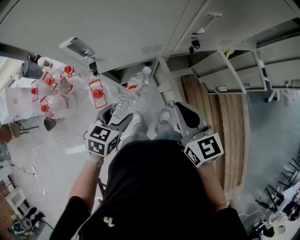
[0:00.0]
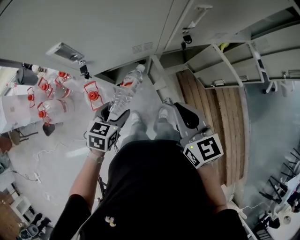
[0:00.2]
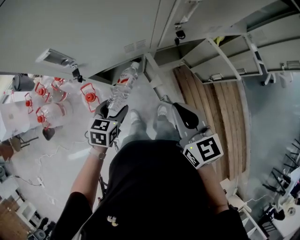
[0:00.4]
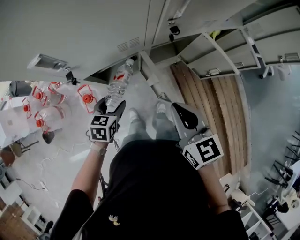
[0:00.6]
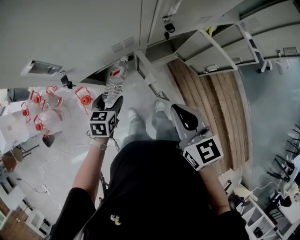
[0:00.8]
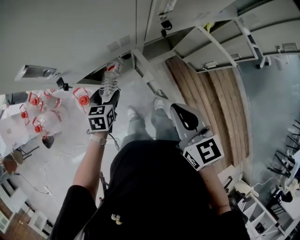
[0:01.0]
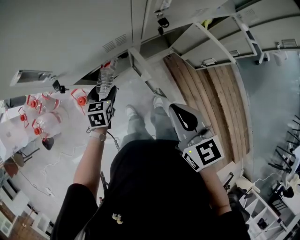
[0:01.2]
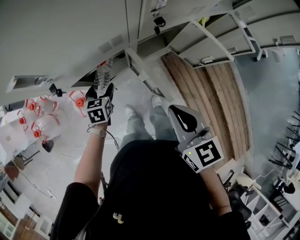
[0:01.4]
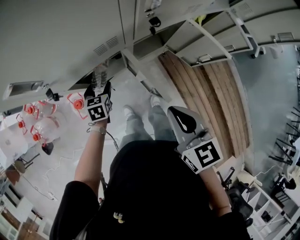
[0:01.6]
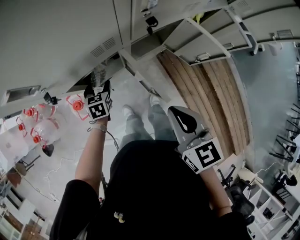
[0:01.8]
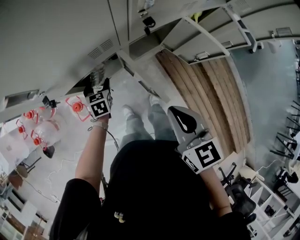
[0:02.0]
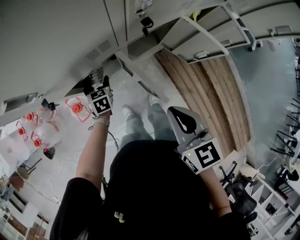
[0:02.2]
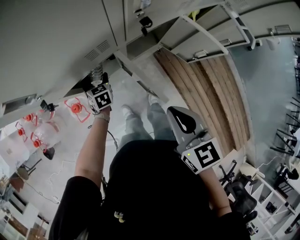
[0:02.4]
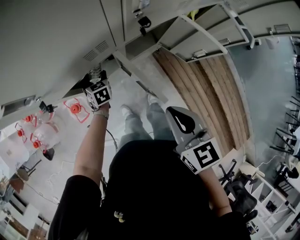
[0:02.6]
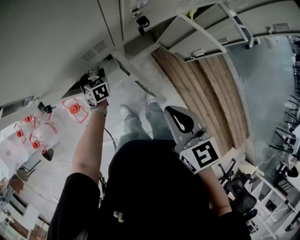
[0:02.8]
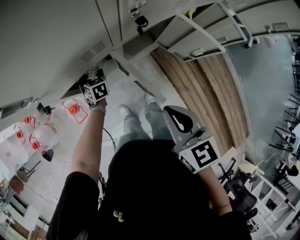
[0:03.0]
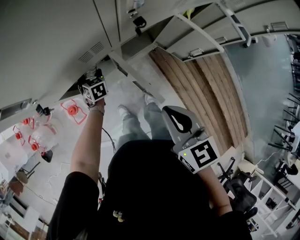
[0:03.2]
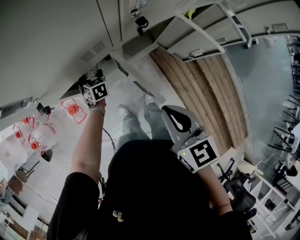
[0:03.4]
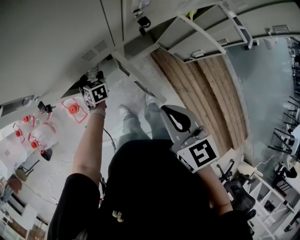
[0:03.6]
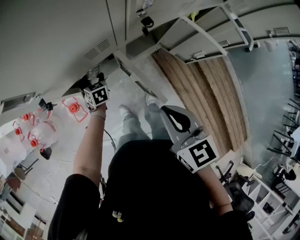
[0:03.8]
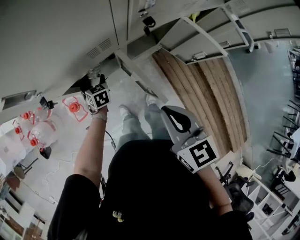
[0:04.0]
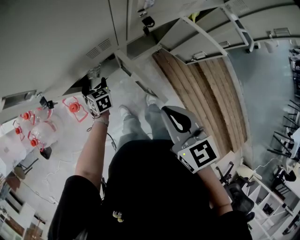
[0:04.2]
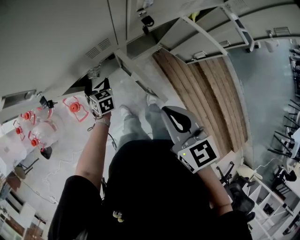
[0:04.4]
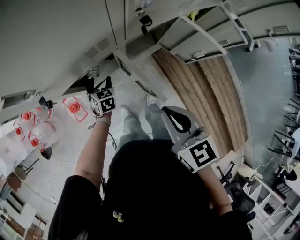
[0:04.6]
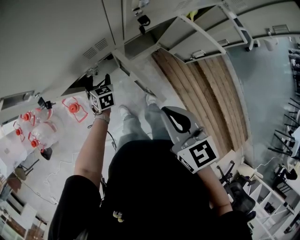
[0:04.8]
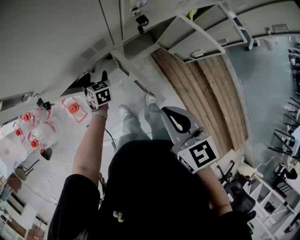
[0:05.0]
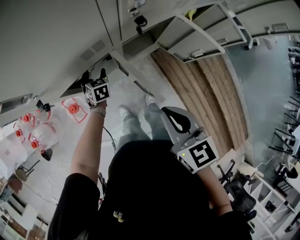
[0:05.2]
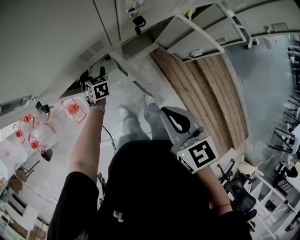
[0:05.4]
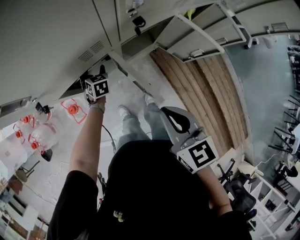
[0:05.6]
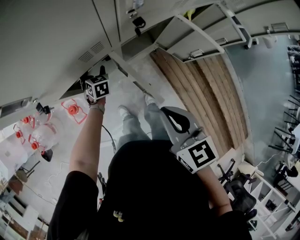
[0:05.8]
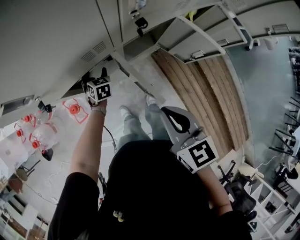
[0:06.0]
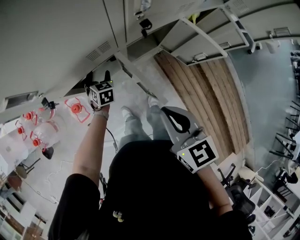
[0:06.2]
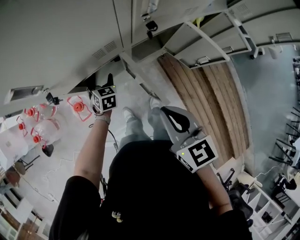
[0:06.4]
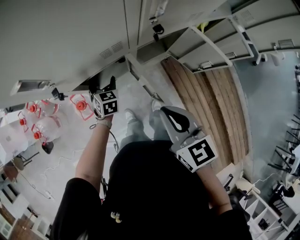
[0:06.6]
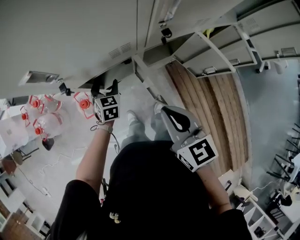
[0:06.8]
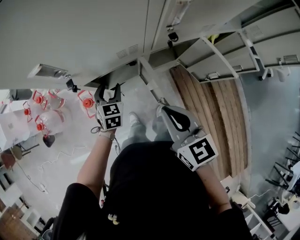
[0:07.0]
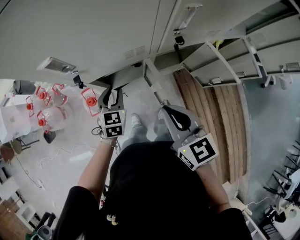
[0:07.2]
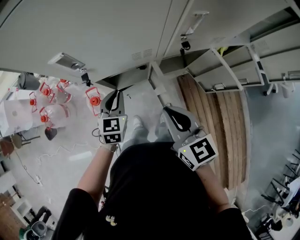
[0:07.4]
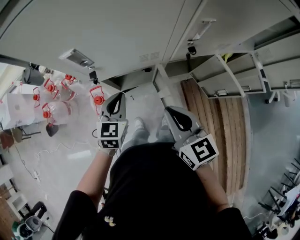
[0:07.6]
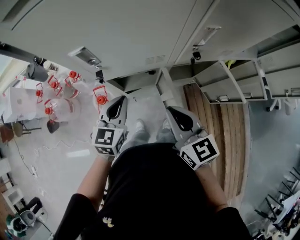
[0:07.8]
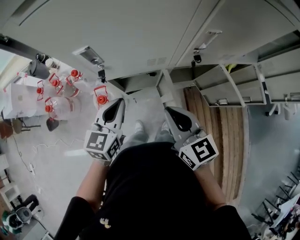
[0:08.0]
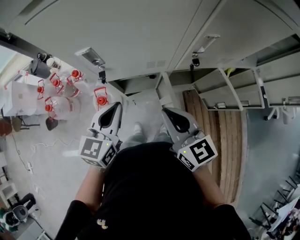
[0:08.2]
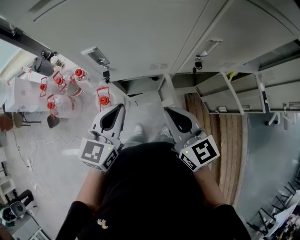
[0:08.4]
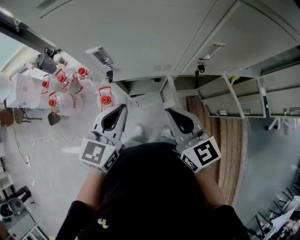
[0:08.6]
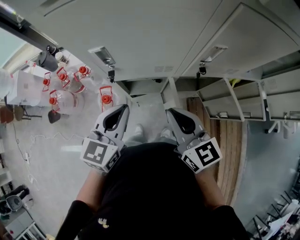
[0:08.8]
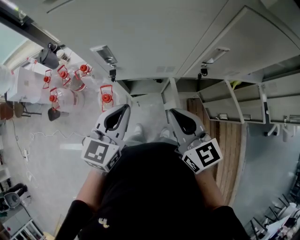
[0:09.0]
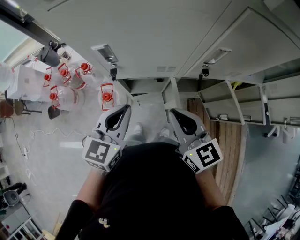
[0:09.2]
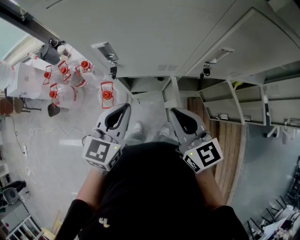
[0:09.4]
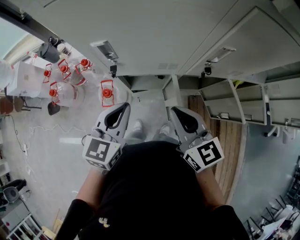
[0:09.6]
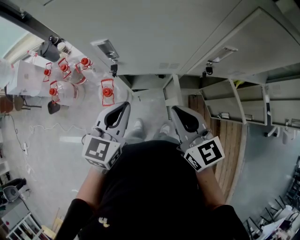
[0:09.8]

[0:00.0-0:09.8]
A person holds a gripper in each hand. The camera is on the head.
0:00.0 to 0:01.4: The left gripper travels downward and forward by roughly 20 cm. The right gripper changes place by about 5 cm.
0:01.4 to 0:02.8: The left gripper travels forward and downward by approximately 10 cm.
0:02.8 to 0:04.2: There are only small adjustments of the grippers.
0:04.2 to 0:05.6: The left gripper moves forward, about 5 cm.
0:05.6 to 0:07.0: The left gripper travels upward and backward by some 15 cm; the right gripper moves about 5 cm.
0:07.0 to 0:08.4: The right gripper is displaced upward by about 5 cm, while the left gripper moves upward, some 25 cm, turns by some 30 degrees, and closes.
0:08.4 to 0:09.8: There are only small adjustments of the grippers.

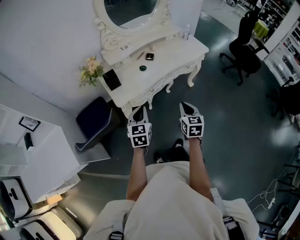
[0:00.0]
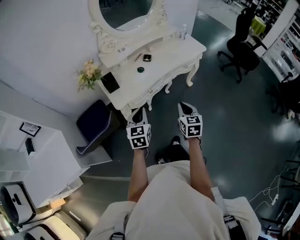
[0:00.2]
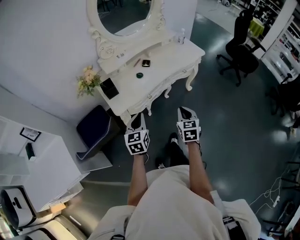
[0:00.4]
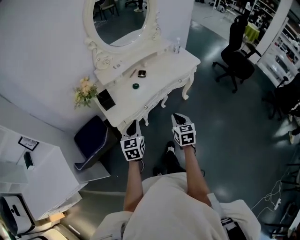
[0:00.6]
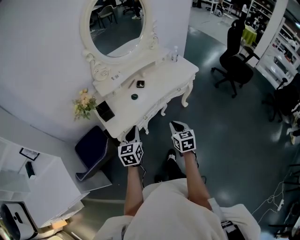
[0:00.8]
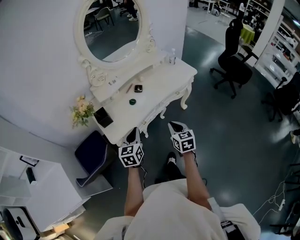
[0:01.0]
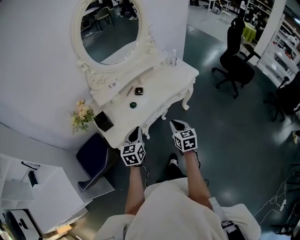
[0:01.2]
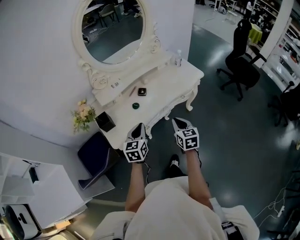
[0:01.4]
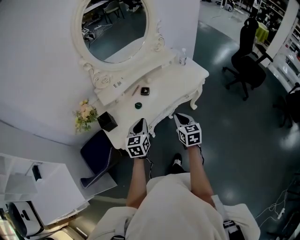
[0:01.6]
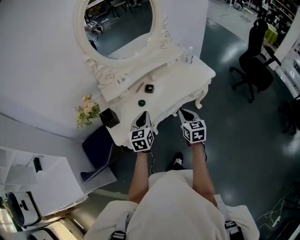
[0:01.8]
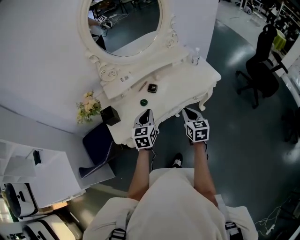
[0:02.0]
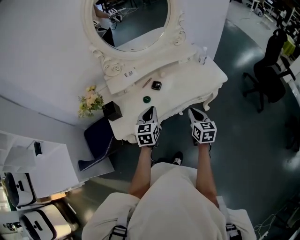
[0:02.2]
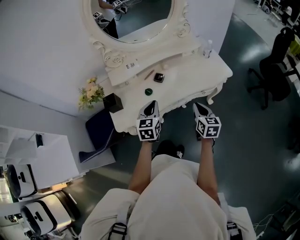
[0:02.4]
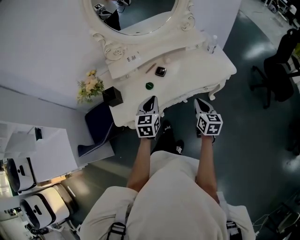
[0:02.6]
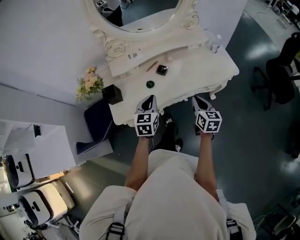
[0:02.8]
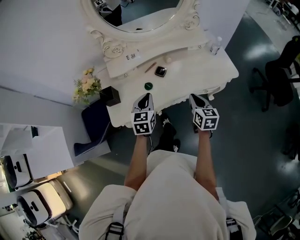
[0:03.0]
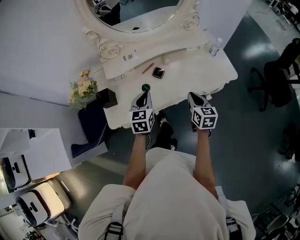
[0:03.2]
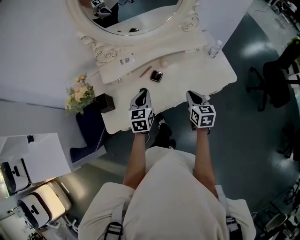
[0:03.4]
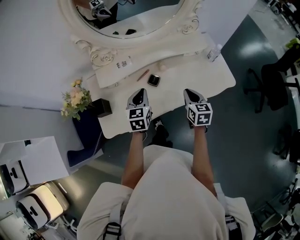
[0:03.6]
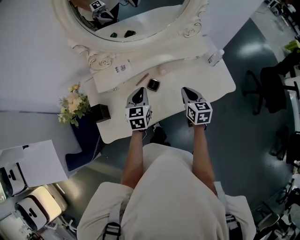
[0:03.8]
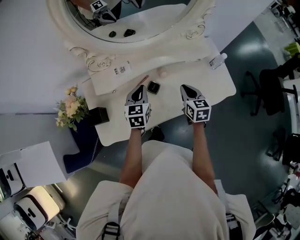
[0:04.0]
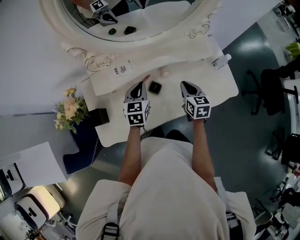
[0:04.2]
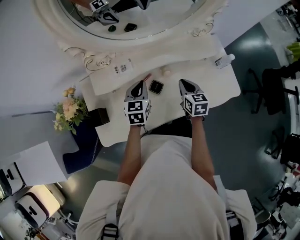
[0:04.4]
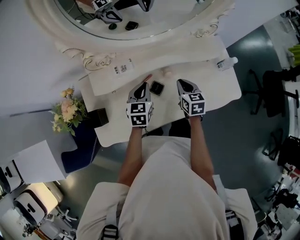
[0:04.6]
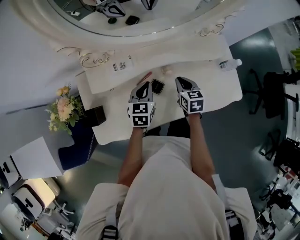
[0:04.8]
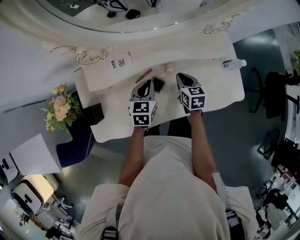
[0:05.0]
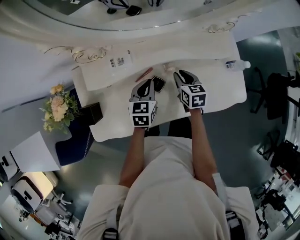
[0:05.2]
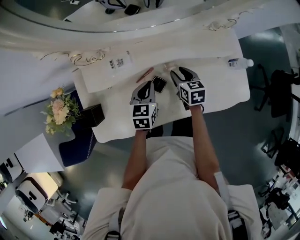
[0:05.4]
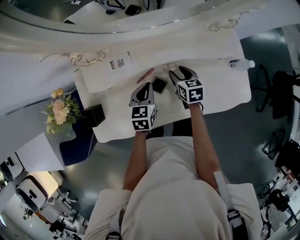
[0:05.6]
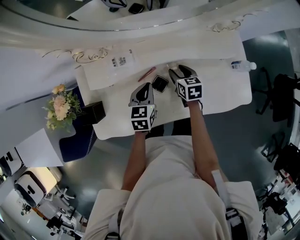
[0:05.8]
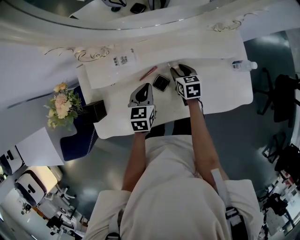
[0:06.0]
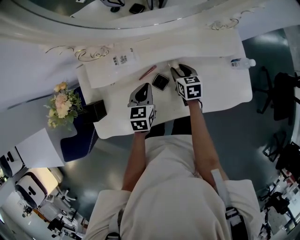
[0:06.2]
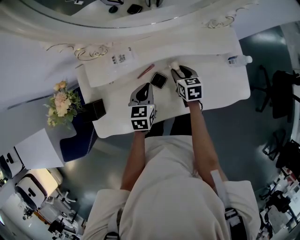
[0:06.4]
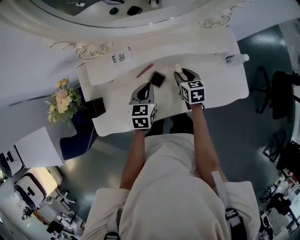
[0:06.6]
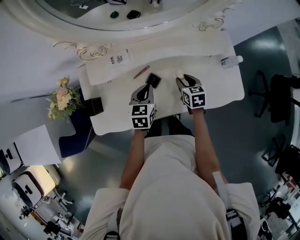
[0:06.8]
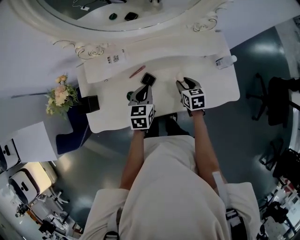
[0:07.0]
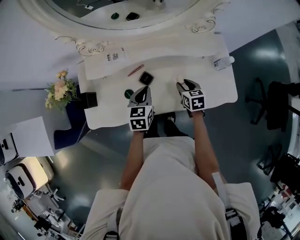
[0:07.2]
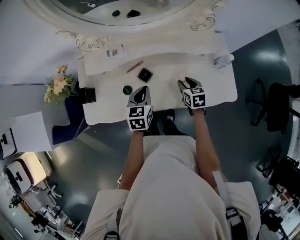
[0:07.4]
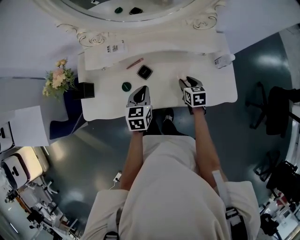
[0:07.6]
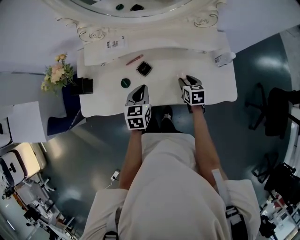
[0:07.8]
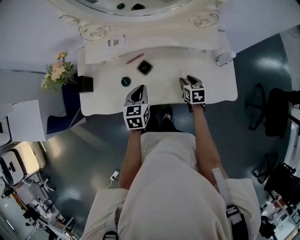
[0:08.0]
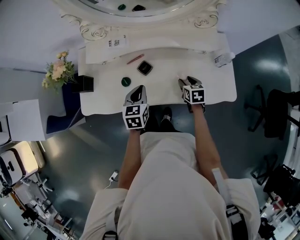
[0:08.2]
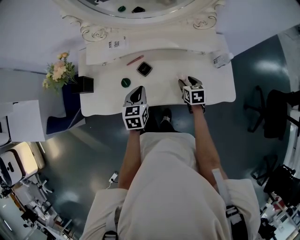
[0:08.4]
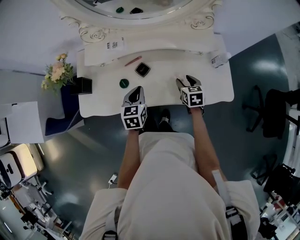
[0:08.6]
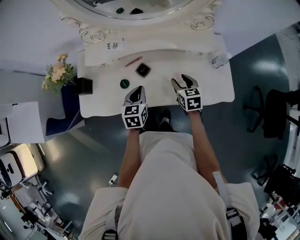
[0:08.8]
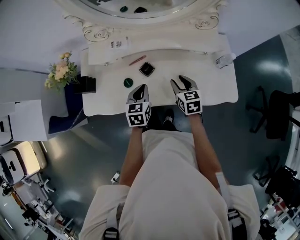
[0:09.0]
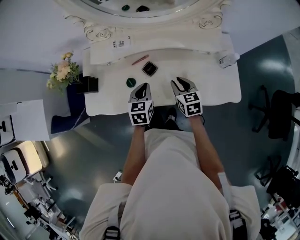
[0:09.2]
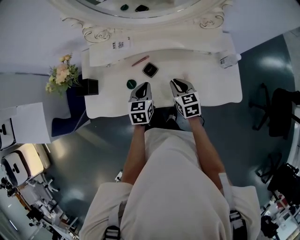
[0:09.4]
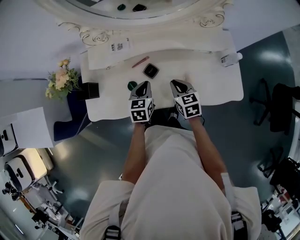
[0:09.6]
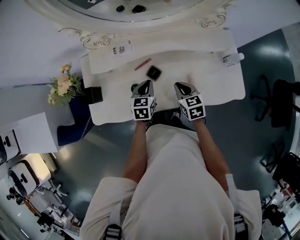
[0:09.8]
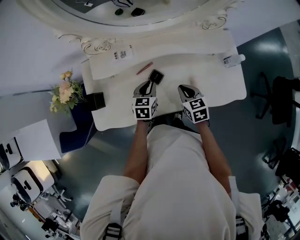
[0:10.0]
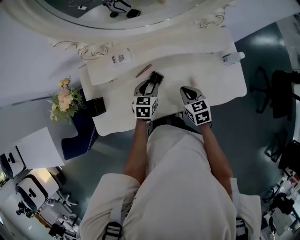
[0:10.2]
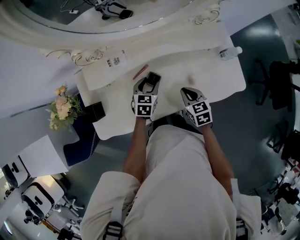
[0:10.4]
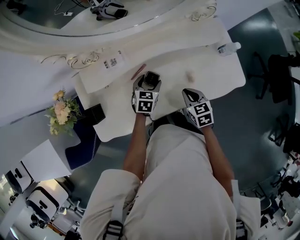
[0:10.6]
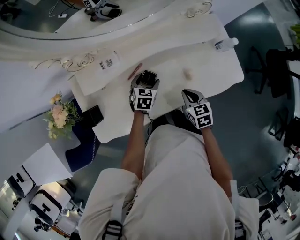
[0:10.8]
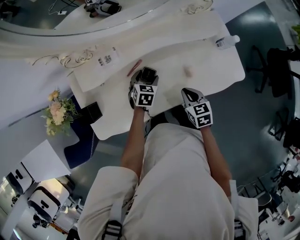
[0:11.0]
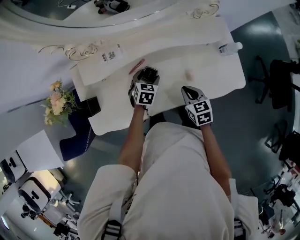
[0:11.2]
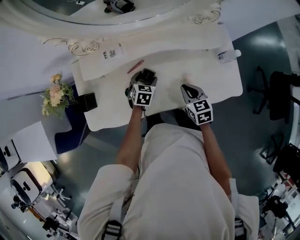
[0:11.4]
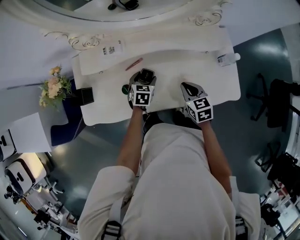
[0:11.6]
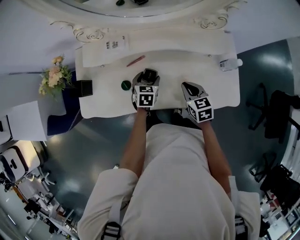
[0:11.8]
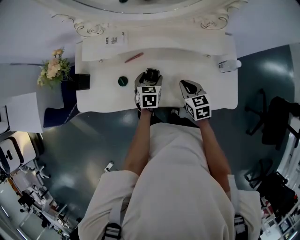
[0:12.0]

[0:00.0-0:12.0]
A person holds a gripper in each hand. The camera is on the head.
0:00.0 to 0:01.6: The grippers both shift forward by approximately 20 cm.
0:01.6 to 0:03.0: The grippers both shift forward by roughly 15 cm.
0:03.0 to 0:04.4: The grippers both shift forward by some 25 cm.
0:04.4 to 0:06.0: The left gripper travels downward by about 5 cm. The right gripper travels downward and forward by approximately 15 cm, and opens up.
0:06.0 to 0:07.6: The right gripper travels to the right and backward by roughly 20 cm. The left gripper moves backward and to the right, some 15 cm.
0:07.6 to 0:09.0: The right gripper is displaced to the left and upward by roughly 10 cm.
0:09.0 to 0:10.4: The right gripper closes up. Meanwhile the left gripper is displaced forward and downward by some 15 cm, swivels about 20 degrees, and opens up.
0:10.4 to 0:12.0: The left gripper changes place by approximately 5 cm, and swivels roughly 30 degrees, while the right gripper shifts by about 5 cm.

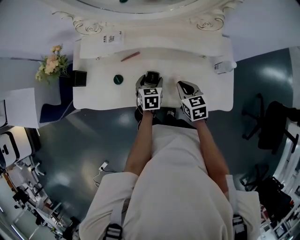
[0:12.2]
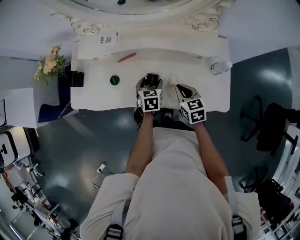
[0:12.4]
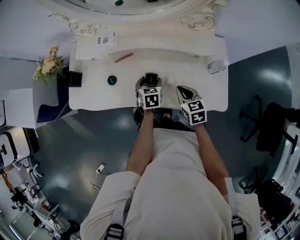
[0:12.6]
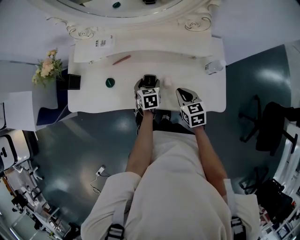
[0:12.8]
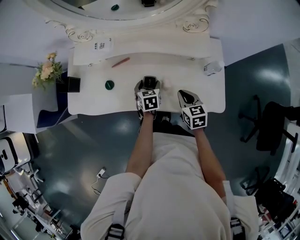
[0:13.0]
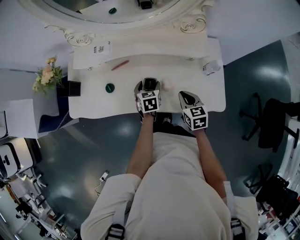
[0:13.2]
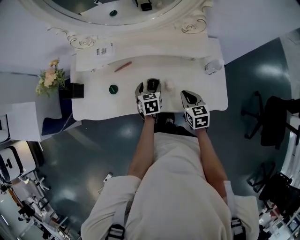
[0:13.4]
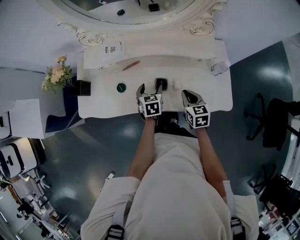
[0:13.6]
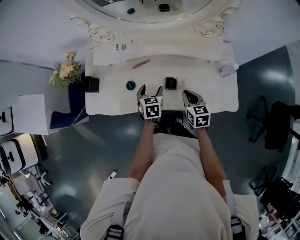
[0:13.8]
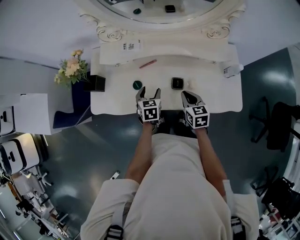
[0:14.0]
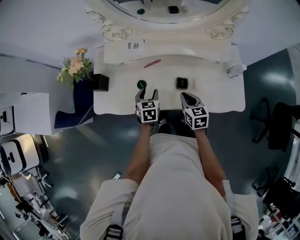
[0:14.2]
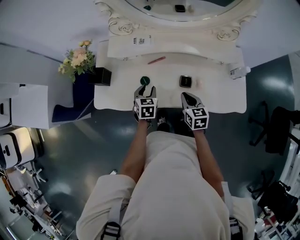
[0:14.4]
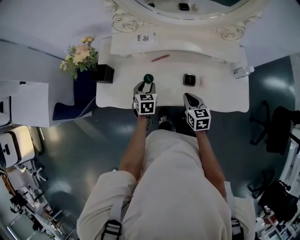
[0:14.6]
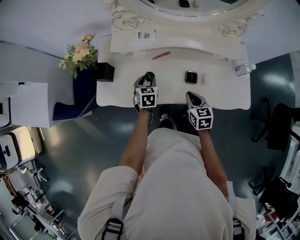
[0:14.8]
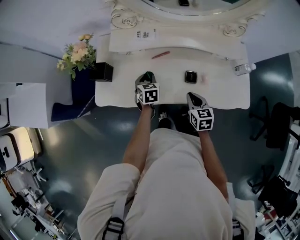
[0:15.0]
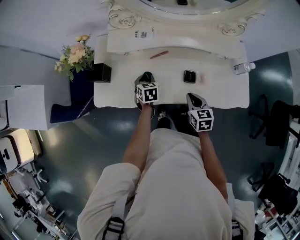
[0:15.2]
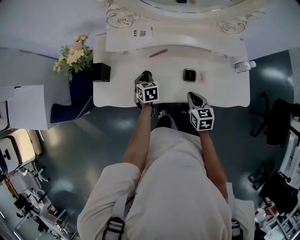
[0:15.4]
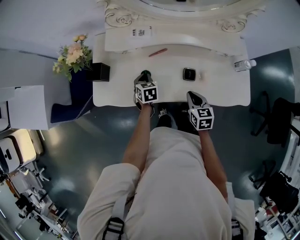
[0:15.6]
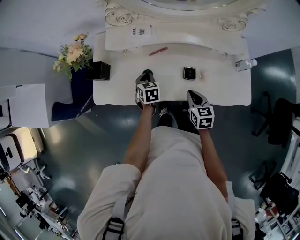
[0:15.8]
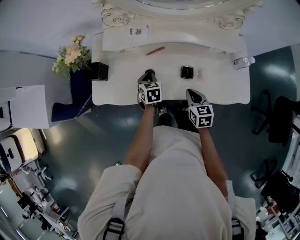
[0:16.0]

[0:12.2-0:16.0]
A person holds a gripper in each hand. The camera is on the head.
0:12.2 to 0:13.4: The right gripper is displaced to the right by some 5 cm.
0:13.4 to 0:14.8: The two grippers go about 20 cm to the left. The left gripper closes.
0:14.8 to 0:16.0: The left gripper closes its fingers.
